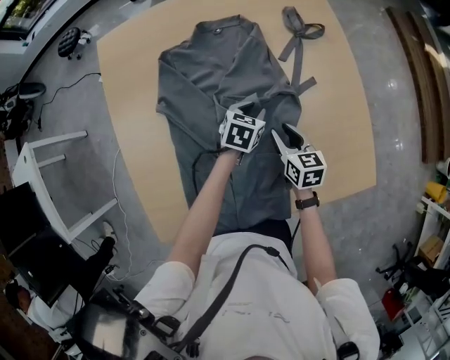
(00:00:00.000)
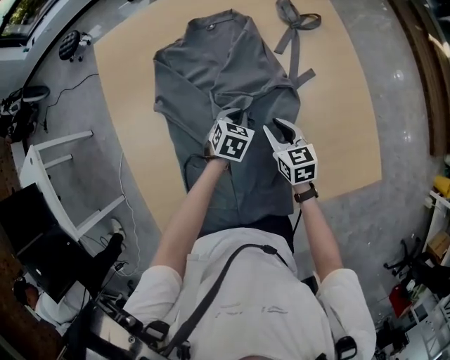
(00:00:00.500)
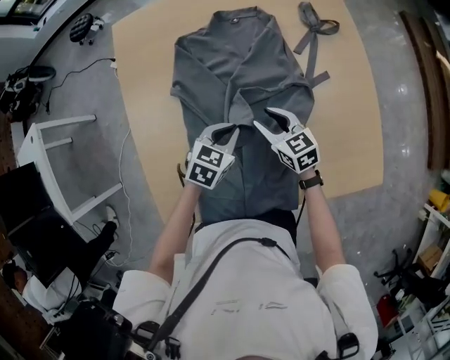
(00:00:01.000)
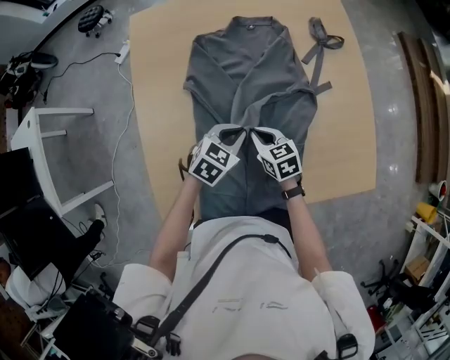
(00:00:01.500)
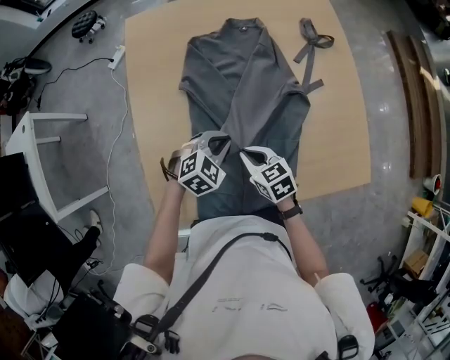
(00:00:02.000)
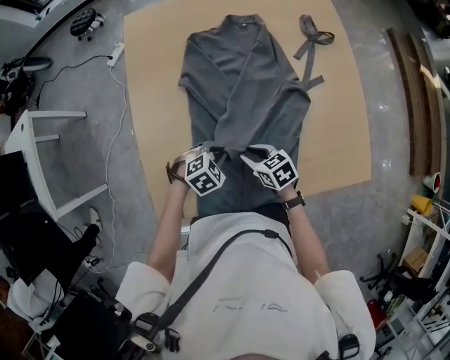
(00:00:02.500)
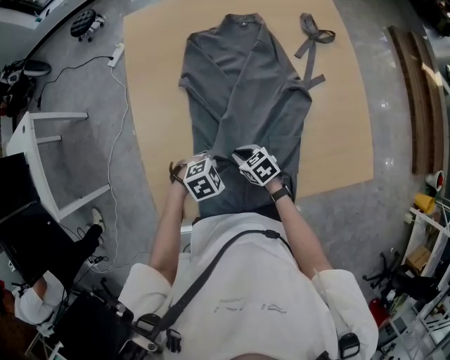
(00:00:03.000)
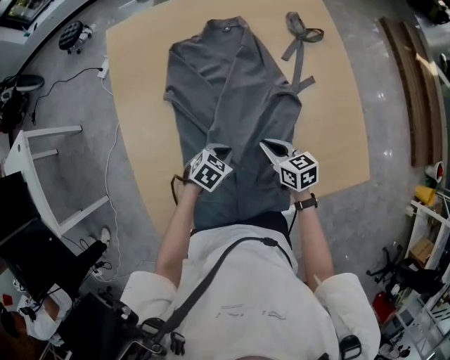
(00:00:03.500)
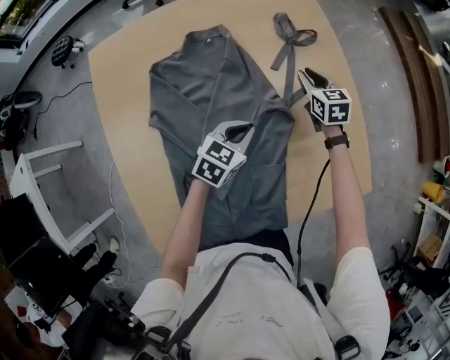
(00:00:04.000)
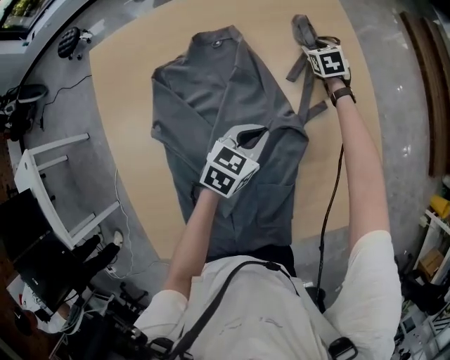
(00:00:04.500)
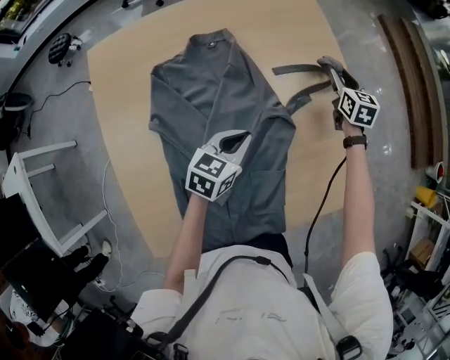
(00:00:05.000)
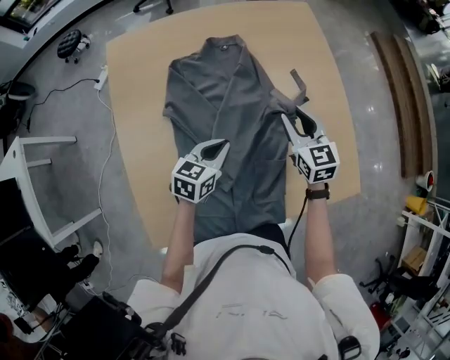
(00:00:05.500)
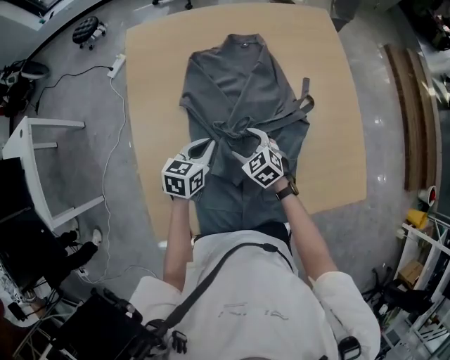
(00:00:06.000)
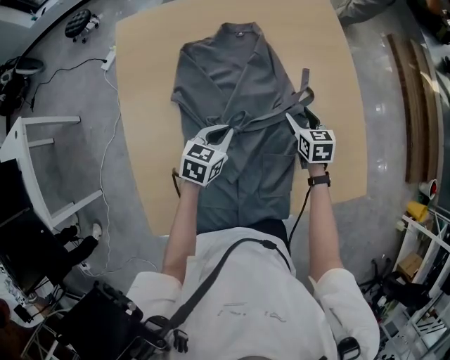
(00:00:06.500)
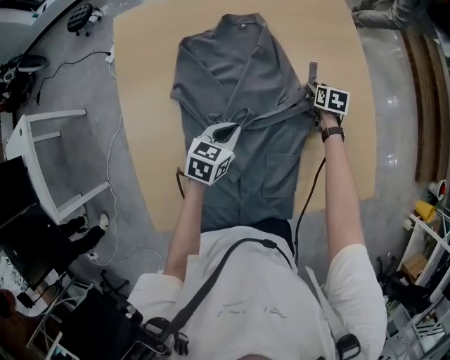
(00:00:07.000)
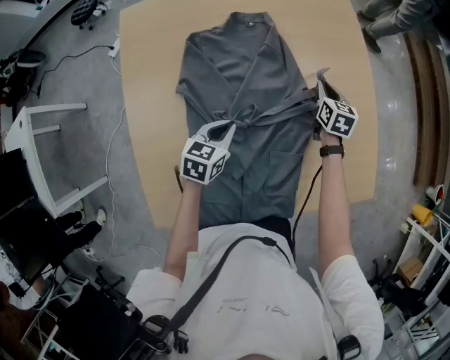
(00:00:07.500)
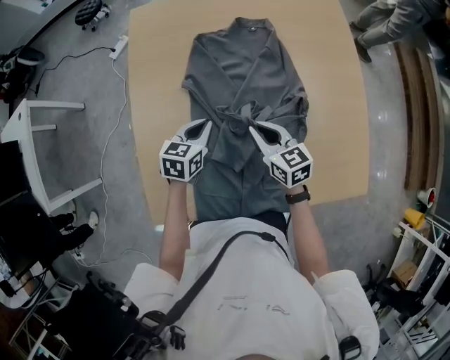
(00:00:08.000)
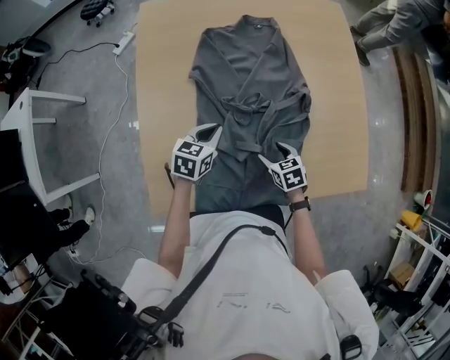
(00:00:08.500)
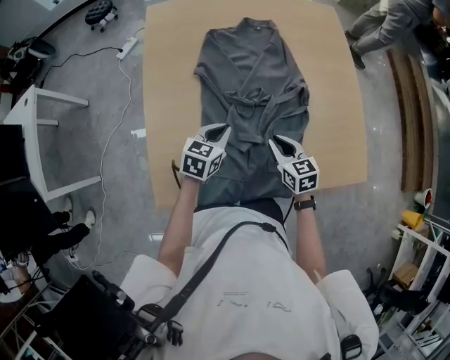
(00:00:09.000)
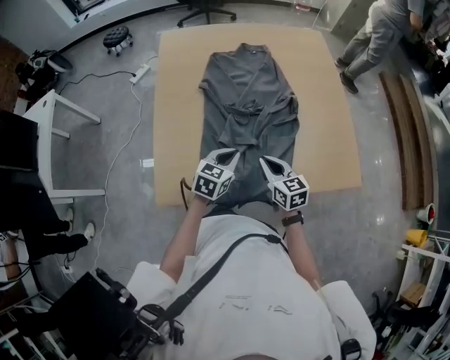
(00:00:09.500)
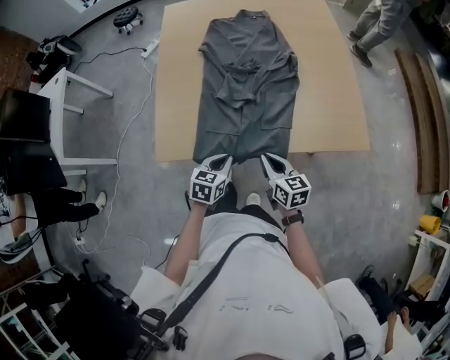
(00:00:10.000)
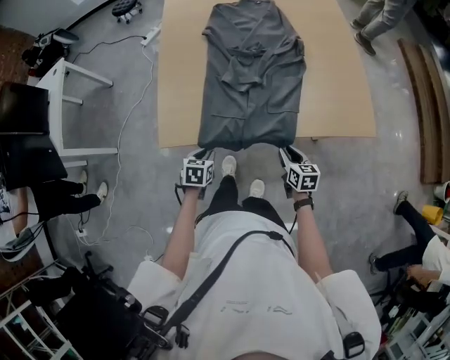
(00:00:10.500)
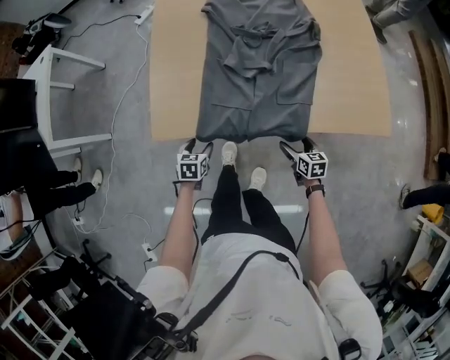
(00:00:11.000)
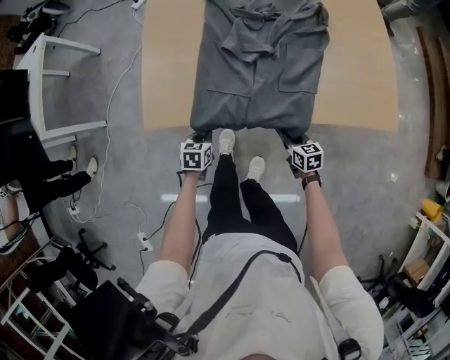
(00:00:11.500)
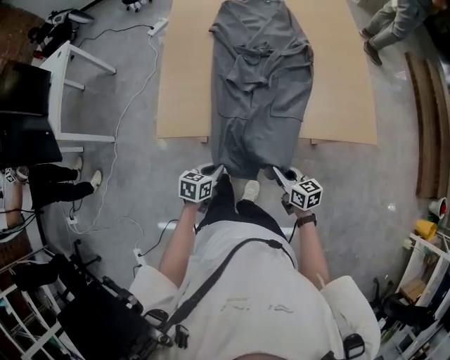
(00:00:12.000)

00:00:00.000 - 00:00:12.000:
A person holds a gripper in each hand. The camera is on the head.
00:00:00.000 - 00:00:02.000: The right gripper travels to the left and backward by about 20 cm, and turns by about 30 degrees. Meanwhile the left gripper travels backward, to the left and upward by approximately 20 cm, rotates approximately 40 degrees, and closes up.
00:00:02.000 - 00:00:04.000: The right gripper travels downward and back again, approximately 10 cm each way, and changes its angle by some 30 degrees; the left gripper moves roughly 10 cm downward and comes back, and swivels roughly 30 degrees.
00:00:04.000 - 00:00:06.000: The left gripper ends up some 20 cm from where it was, and turns by roughly 30 degrees. The right gripper goes up and down, about 20 cm each way, reversing 2 times, turns by about 40 degrees, and opens up.
00:00:06.000 - 00:00:08.000: The right gripper goes approximately 10 cm upward, swivels approximately 30 degrees, and closes its fingers.
00:00:08.000 - 00:00:10.000: Both grippers travel together backward, roughly 35 cm. The right gripper opens, then closes once more.
00:00:10.000 - 00:00:12.000: The right gripper shifts some 15 cm backward and downward, and opens and closes again; the left gripper travels backward, downward and to the left by approximately 15 cm, and opens, then closes again.

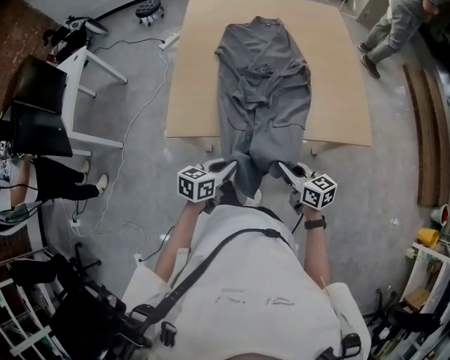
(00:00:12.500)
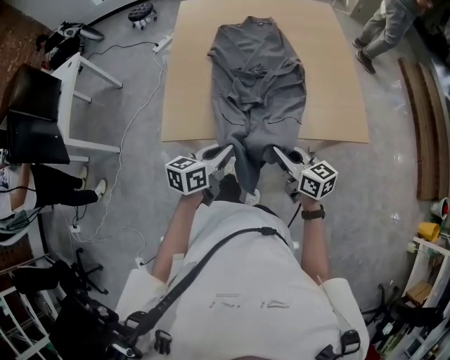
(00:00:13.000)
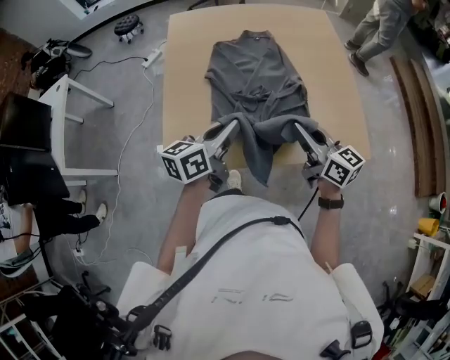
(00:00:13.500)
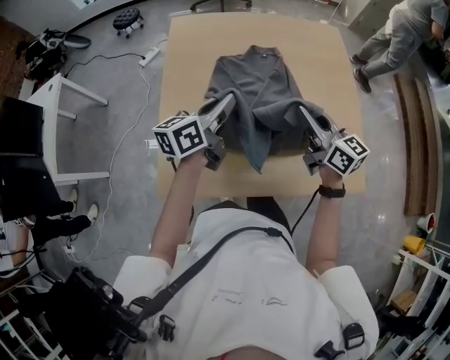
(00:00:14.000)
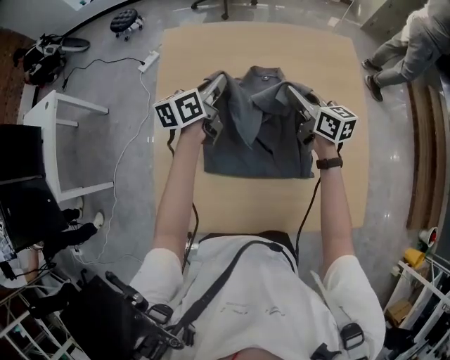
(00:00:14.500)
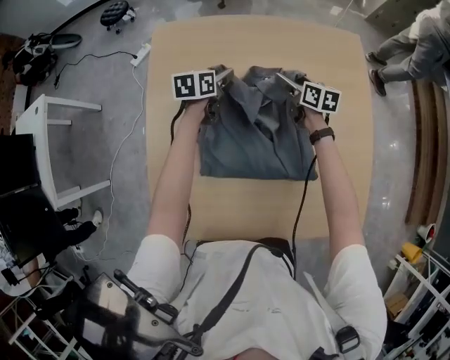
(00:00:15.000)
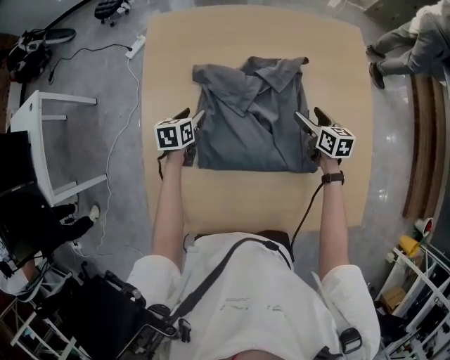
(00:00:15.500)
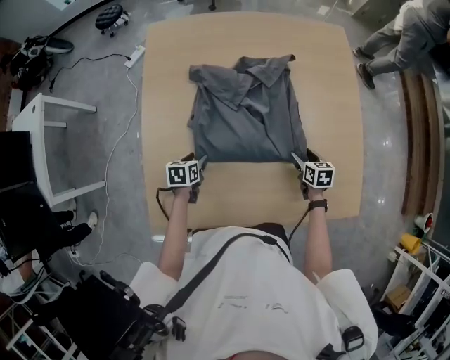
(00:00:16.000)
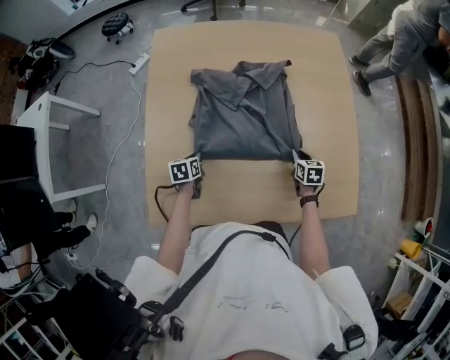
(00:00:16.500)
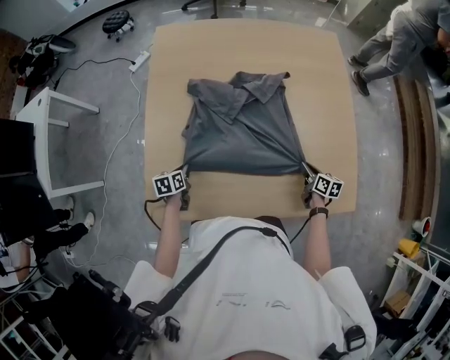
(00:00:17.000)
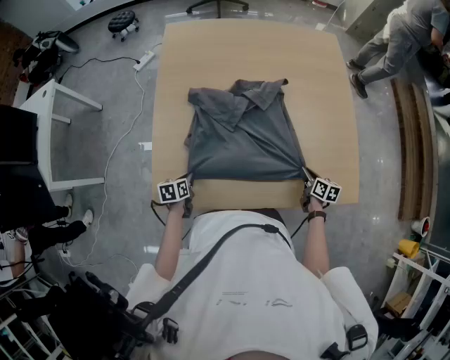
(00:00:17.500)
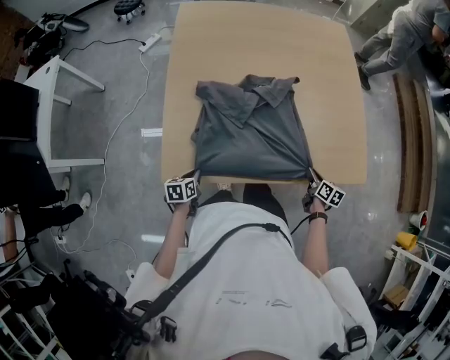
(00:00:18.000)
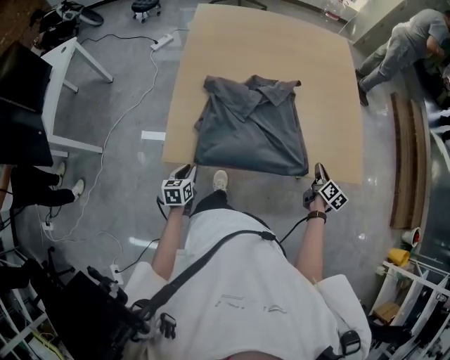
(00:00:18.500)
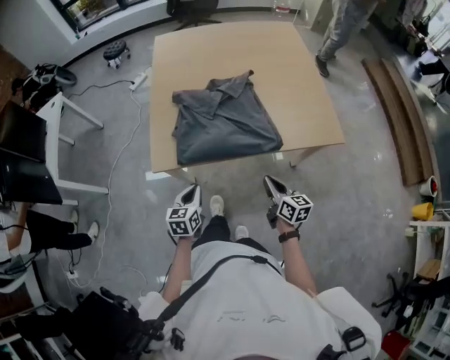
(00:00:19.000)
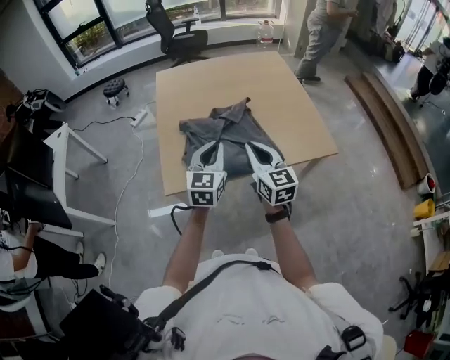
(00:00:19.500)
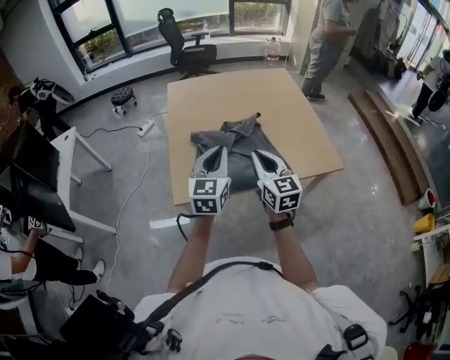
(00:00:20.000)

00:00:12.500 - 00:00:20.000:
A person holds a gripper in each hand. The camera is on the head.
00:00:12.500 - 00:00:14.500: The two grippers travel together, forward, roughly 60 cm. The left gripper rotates approximately 20 degrees.
00:00:14.500 - 00:00:16.500: The left gripper is displaced downward and backward by approximately 35 cm, points its fingers approximately 40 degrees further downward, and opens and closes again; the right gripper heads downward, backward and to the right, covering roughly 35 cm, tips its fingers downward by roughly 40 degrees, and opens and closes again.
00:00:16.500 - 00:00:18.000: Both grippers move backward, roughly 25 cm. The right gripper changes its angle by some 30 degrees.
00:00:18.000 - 00:00:20.000: The right gripper travels upward and to the left by about 40 cm, and angles its fingers upward, by some 40 degrees; the left gripper heads upward, covering approximately 40 cm, and tips its fingers upward by roughly 50 degrees.

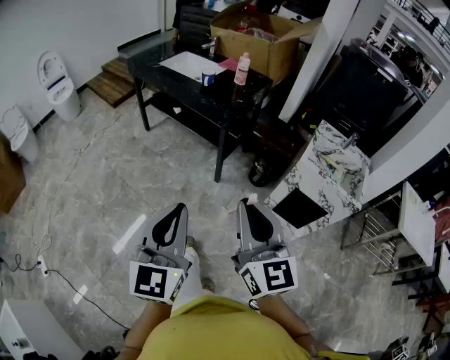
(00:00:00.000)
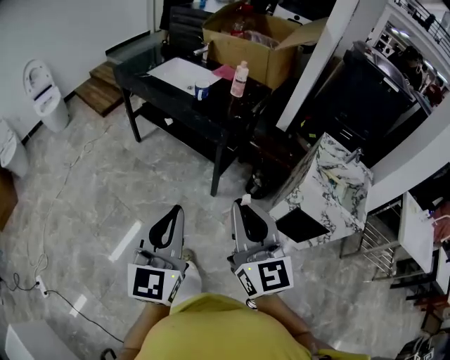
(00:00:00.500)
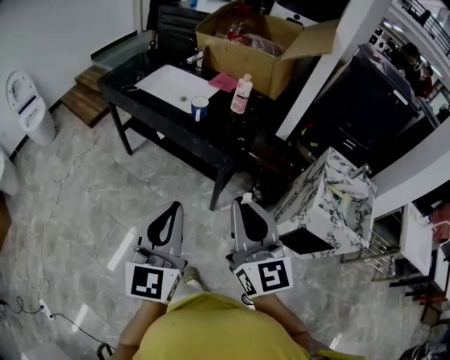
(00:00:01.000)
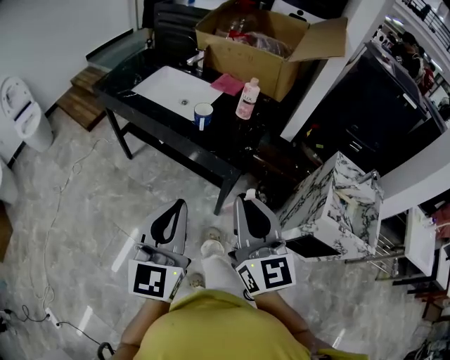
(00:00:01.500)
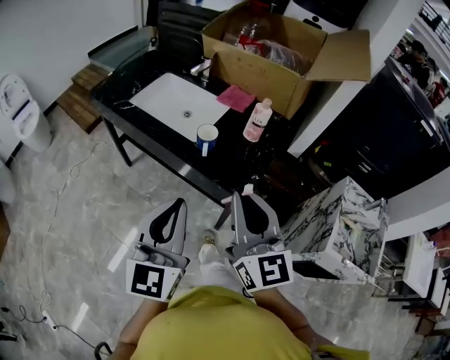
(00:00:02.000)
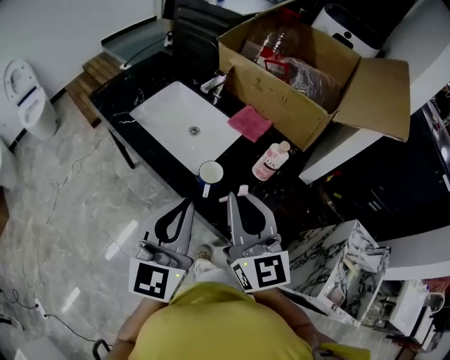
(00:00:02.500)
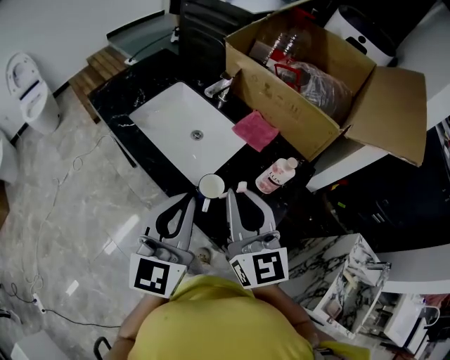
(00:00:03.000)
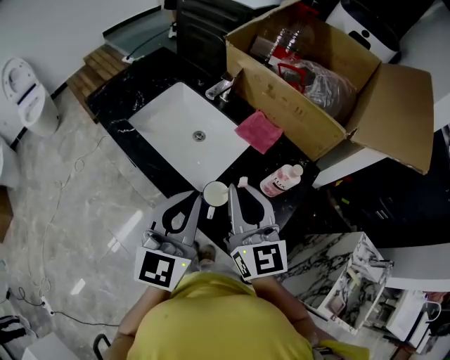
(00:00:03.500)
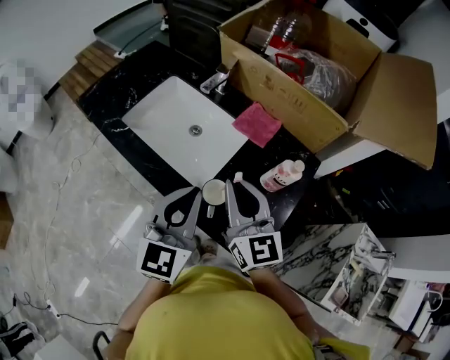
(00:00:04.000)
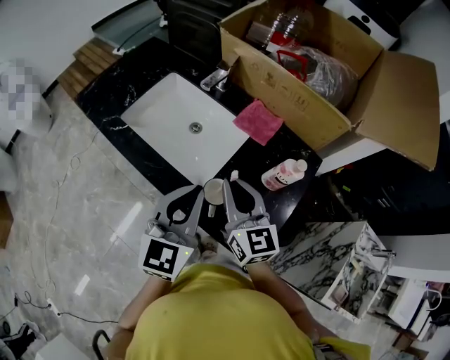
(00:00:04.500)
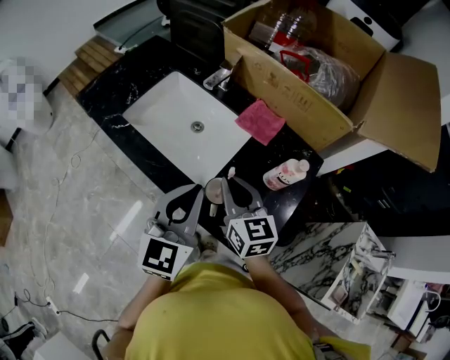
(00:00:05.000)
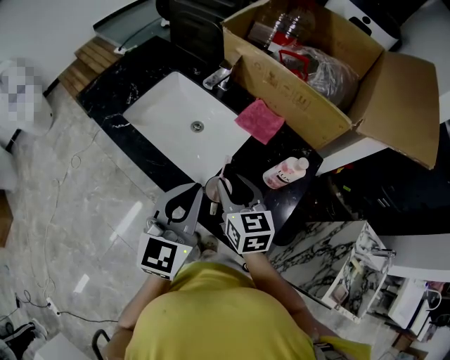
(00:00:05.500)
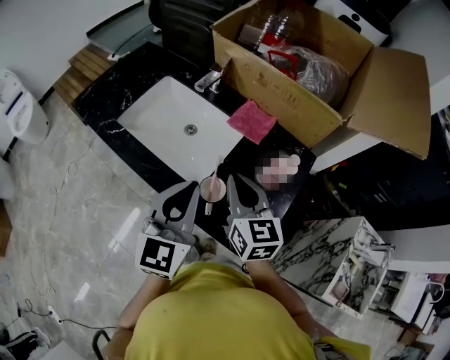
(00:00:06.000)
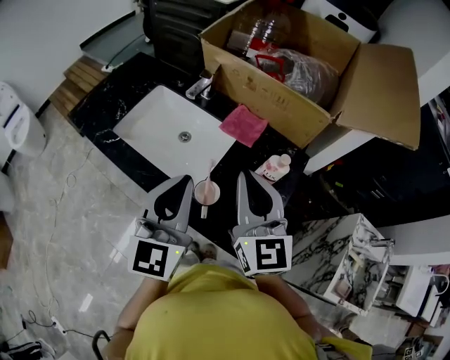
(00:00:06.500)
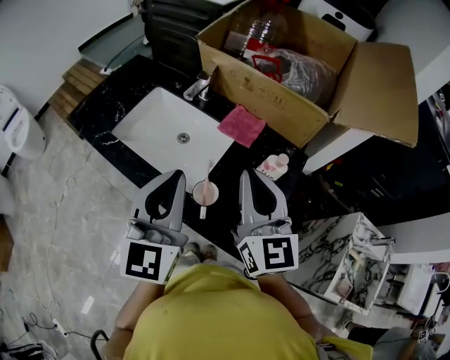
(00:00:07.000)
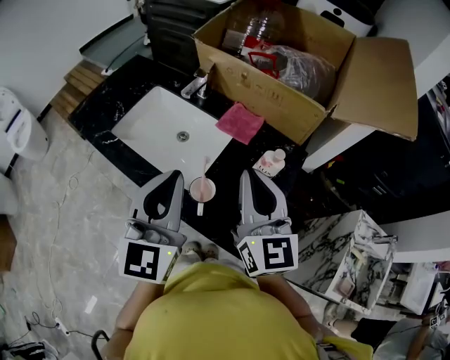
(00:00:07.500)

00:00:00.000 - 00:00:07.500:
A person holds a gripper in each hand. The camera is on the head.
00:00:00.000 - 00:00:02.000: The two grippers travel together, forward, approximately 60 cm.
00:00:02.000 - 00:00:04.000: Both grippers move forward, some 30 cm.
00:00:04.000 - 00:00:05.500: The right gripper heads downward, covering approximately 10 cm, turns by approximately 20 degrees, and opens.
00:00:05.500 - 00:00:07.500: The left gripper is displaced upward by some 10 cm. The right gripper moves upward and to the right, approximately 20 cm, swivels some 30 degrees, and closes up.
